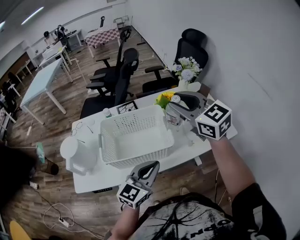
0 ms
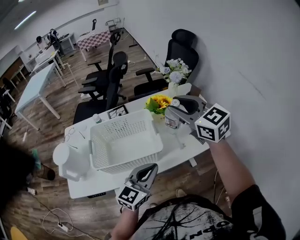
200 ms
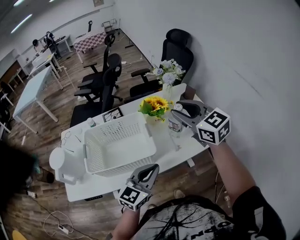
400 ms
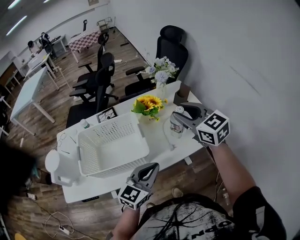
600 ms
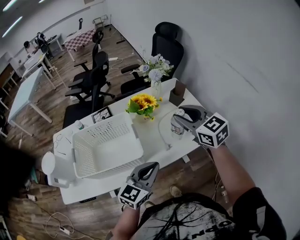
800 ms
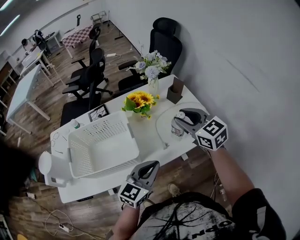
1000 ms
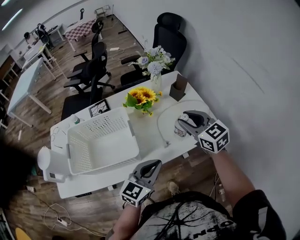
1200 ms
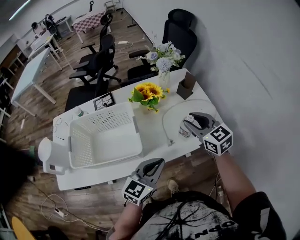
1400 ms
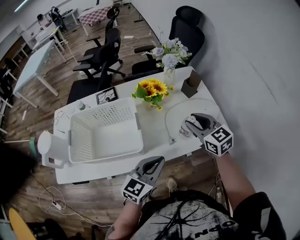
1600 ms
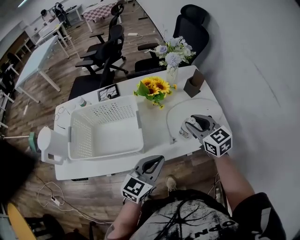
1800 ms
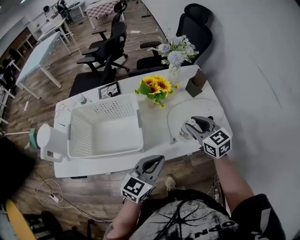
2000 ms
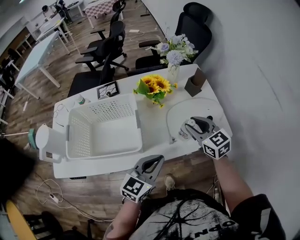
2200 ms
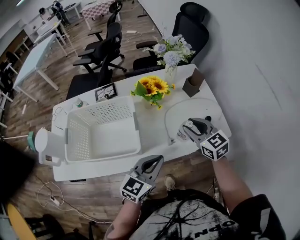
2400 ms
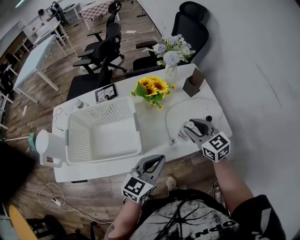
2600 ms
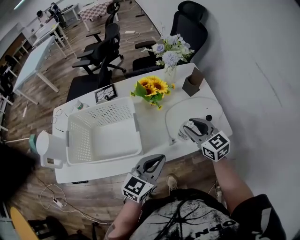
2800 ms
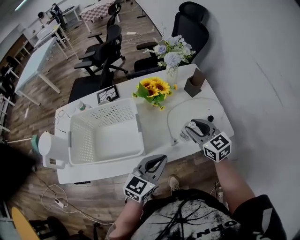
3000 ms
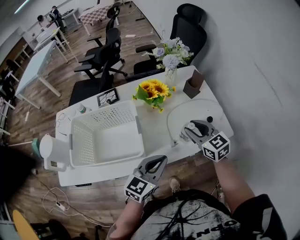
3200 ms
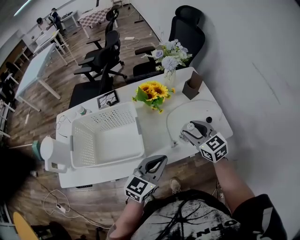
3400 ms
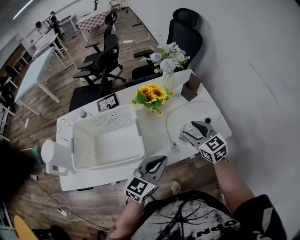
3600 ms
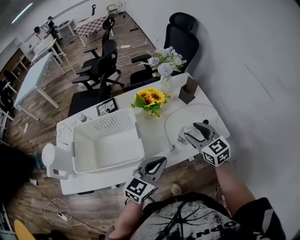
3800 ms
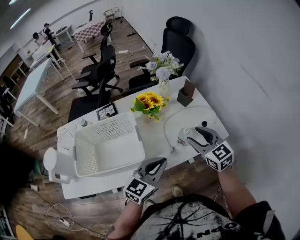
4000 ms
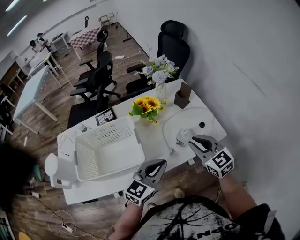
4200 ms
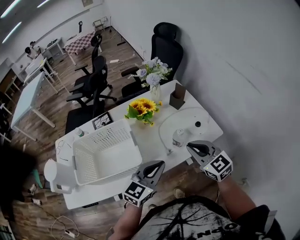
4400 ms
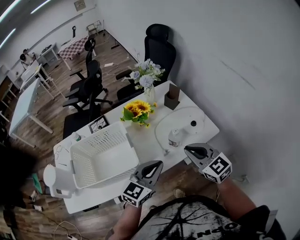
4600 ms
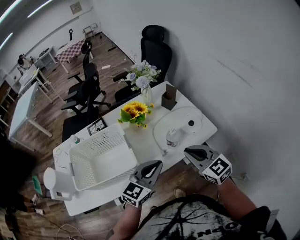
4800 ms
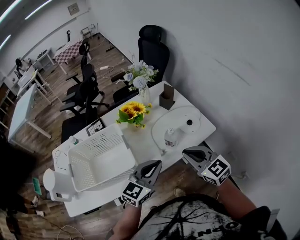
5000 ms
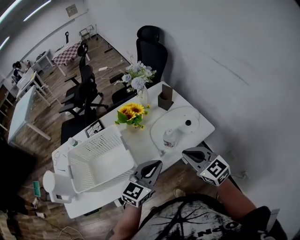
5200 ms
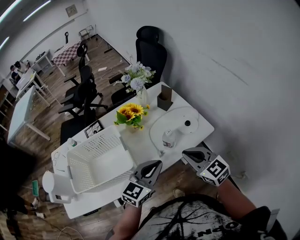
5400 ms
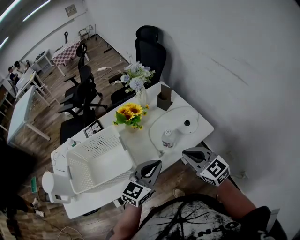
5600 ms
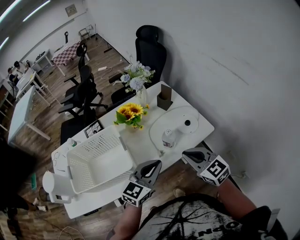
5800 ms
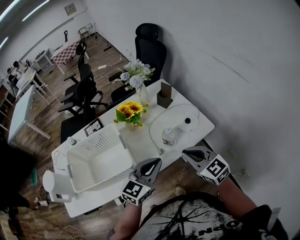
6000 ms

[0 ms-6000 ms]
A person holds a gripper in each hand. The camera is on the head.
0 ms to 1600 ms: The right gripper travels to the right and downward by some 30 cm. Meanwhile the left gripper goes about 15 cm to the right.
1600 ms to 3000 ms: The grippers make only small movements.
3000 ms to 4400 ms: The right gripper heads backward and upward, covering some 10 cm, and closes up.
4400 ms to 6000 ms: There are only small adjustments of the grippers.

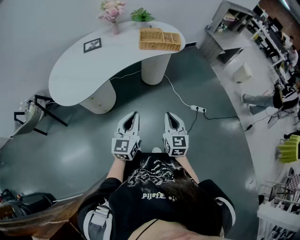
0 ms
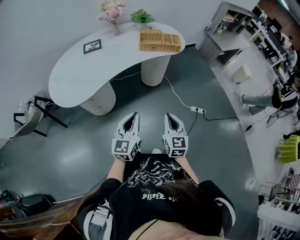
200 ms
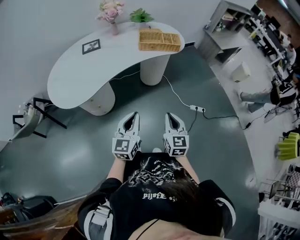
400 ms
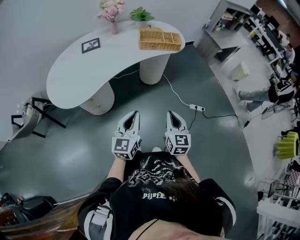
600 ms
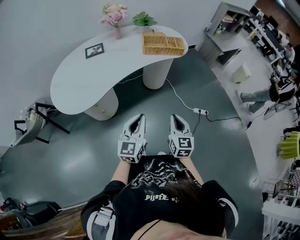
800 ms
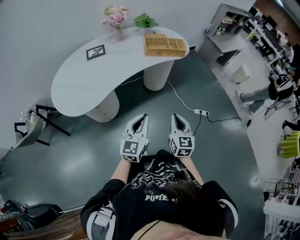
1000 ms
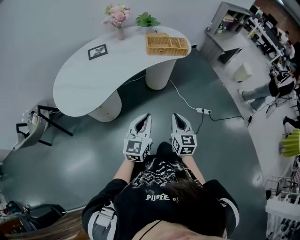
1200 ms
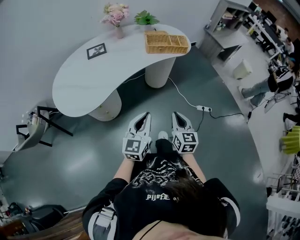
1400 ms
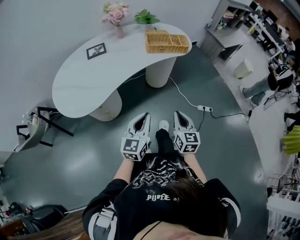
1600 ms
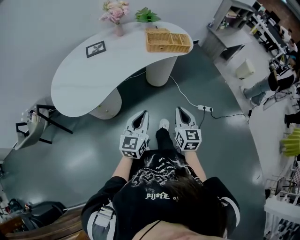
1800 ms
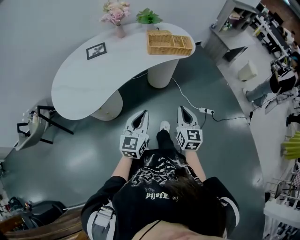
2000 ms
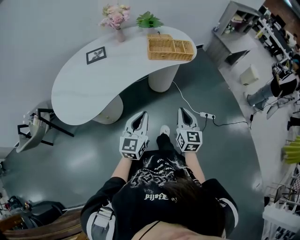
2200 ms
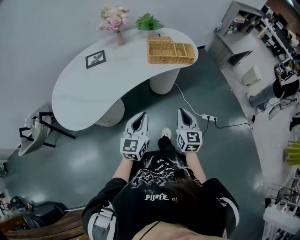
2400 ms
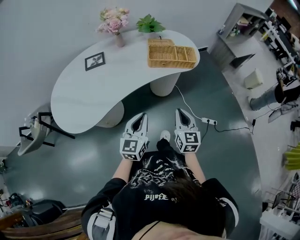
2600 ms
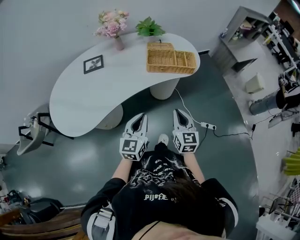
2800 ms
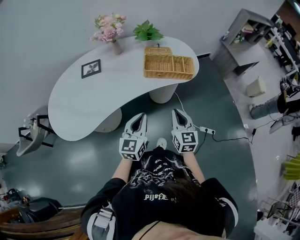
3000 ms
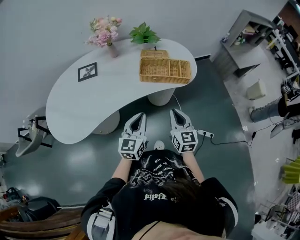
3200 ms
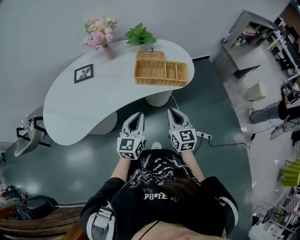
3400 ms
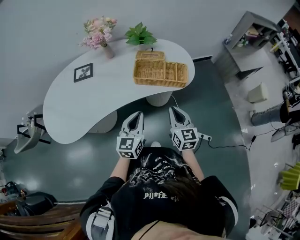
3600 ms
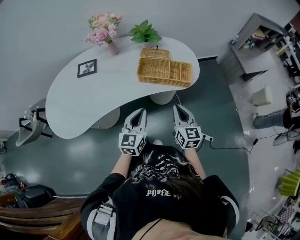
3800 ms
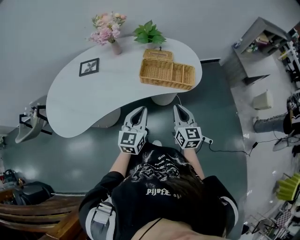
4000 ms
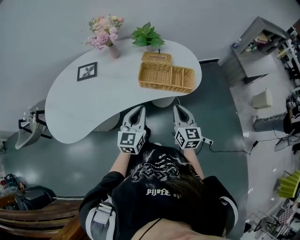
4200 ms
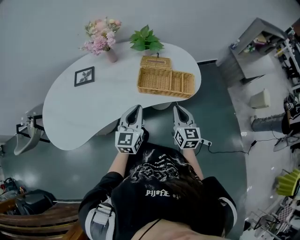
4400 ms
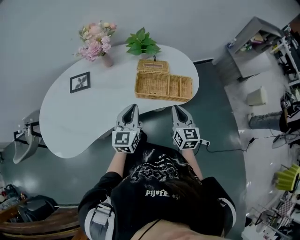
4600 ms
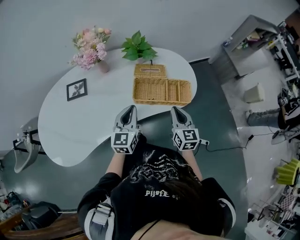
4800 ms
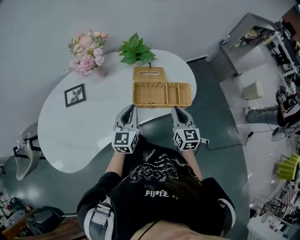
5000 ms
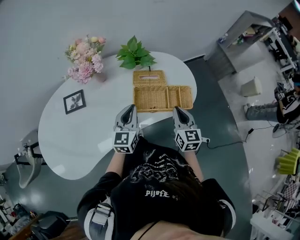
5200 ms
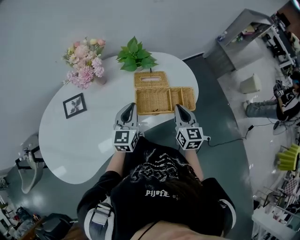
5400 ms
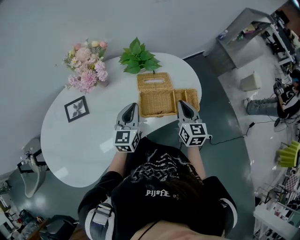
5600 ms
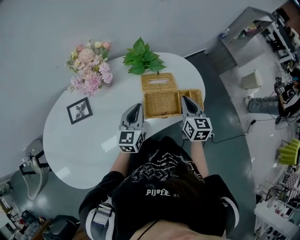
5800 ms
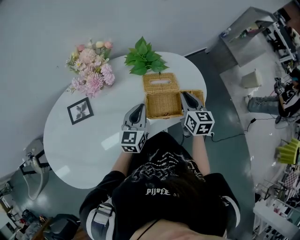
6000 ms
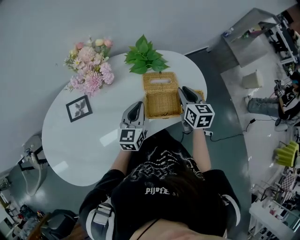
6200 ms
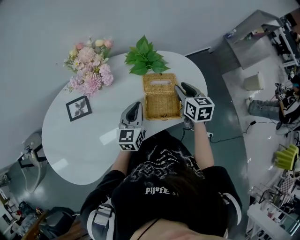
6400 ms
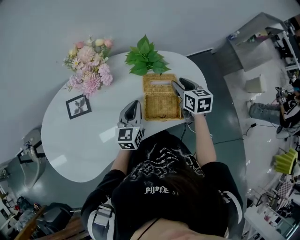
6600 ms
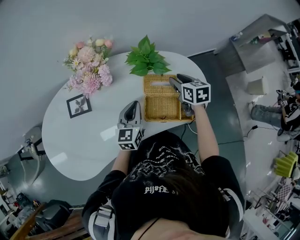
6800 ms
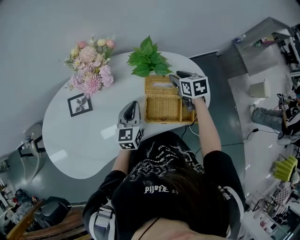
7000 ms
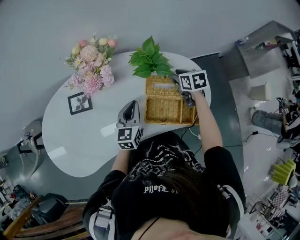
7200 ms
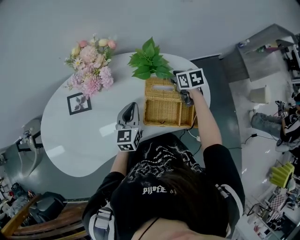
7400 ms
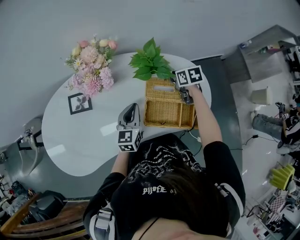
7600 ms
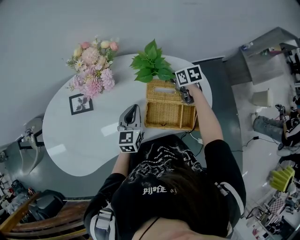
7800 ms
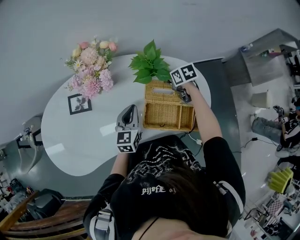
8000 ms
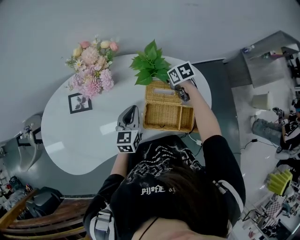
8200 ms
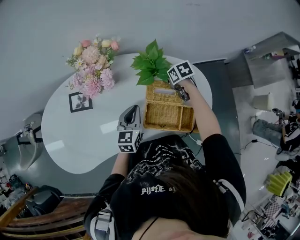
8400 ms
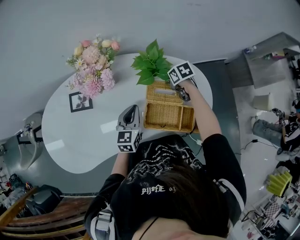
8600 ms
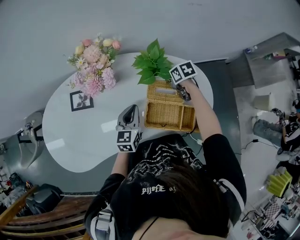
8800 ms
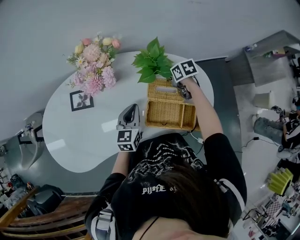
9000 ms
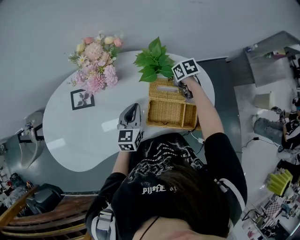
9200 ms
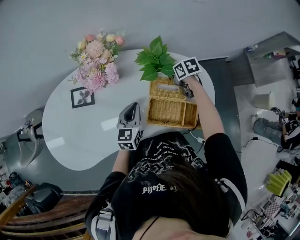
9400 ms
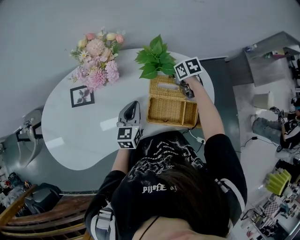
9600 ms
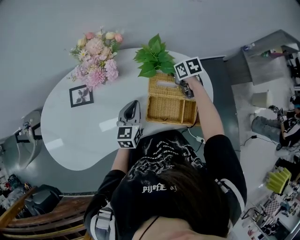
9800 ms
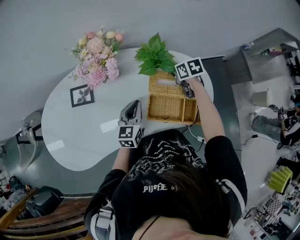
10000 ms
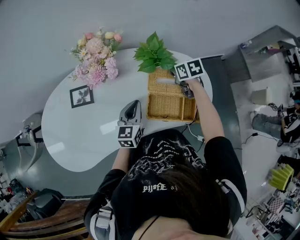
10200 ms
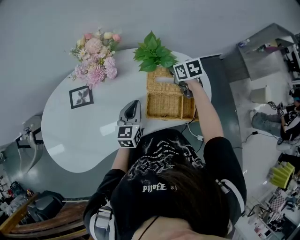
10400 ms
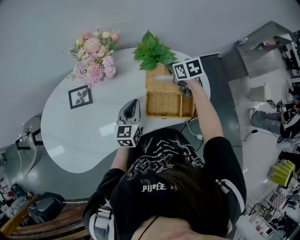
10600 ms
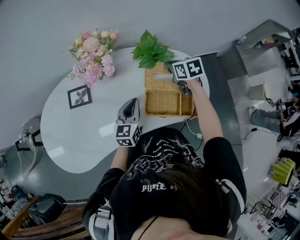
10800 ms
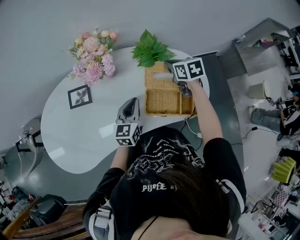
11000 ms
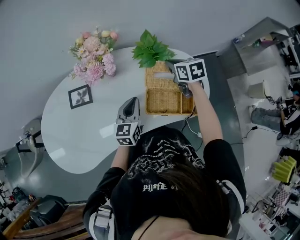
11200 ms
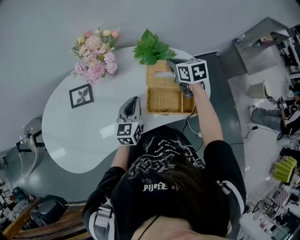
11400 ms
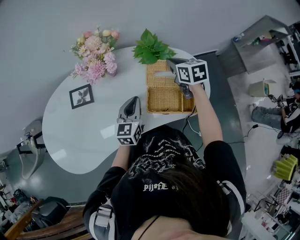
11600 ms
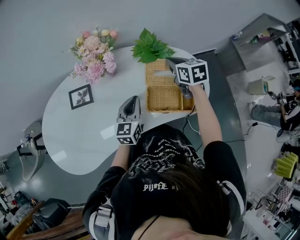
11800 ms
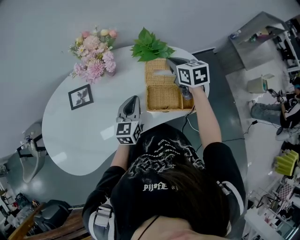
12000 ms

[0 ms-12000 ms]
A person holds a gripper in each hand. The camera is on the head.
0 ms to 1600 ms: Both grippers travel together to the left, approximately 5 cm.
1600 ms to 3000 ms: The two grippers go about 25 cm forward.
3000 ms to 4400 ms: The two grippers go approximately 15 cm forward.
4400 ms to 6000 ms: Both grippers travel together forward, roughly 20 cm.
6000 ms to 7600 ms: The right gripper changes place by approximately 20 cm, turns by roughly 40 degrees, and opens its fingers.
7600 ms to 9000 ms: The right gripper closes its fingers.
9000 ms to 10400 ms: The right gripper is displaced upward by about 5 cm.
10400 ms to 12000 ms: The right gripper moves upward, roughly 10 cm.

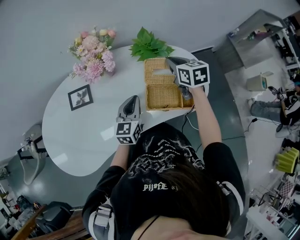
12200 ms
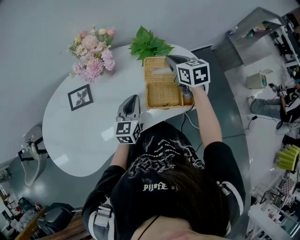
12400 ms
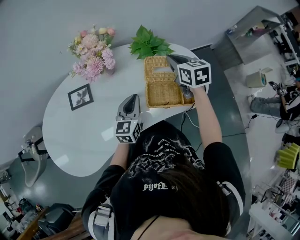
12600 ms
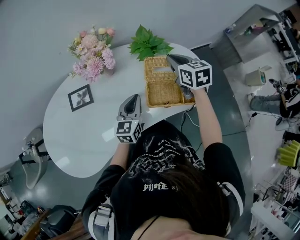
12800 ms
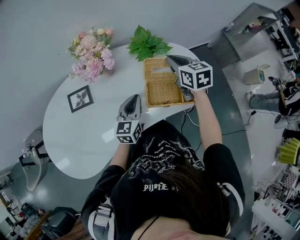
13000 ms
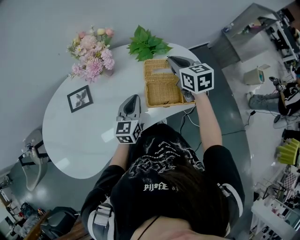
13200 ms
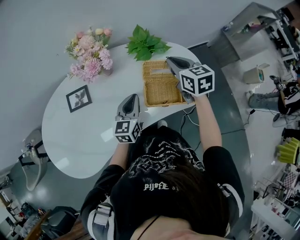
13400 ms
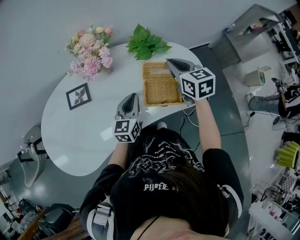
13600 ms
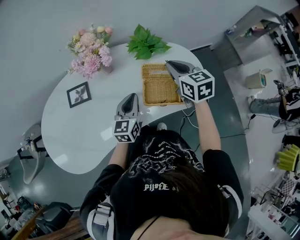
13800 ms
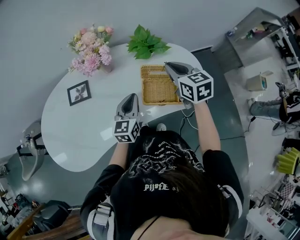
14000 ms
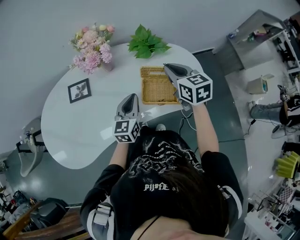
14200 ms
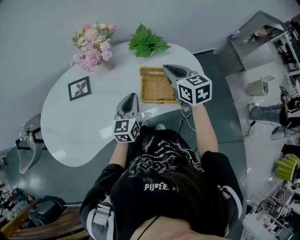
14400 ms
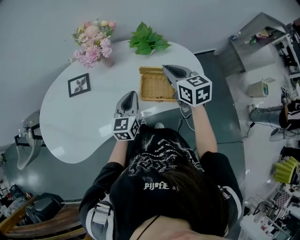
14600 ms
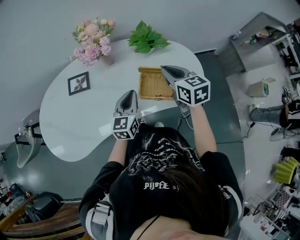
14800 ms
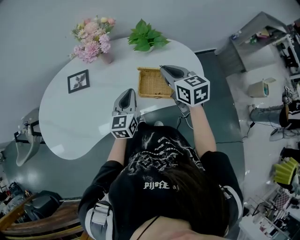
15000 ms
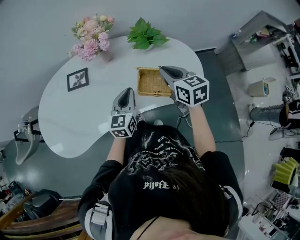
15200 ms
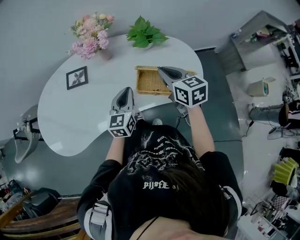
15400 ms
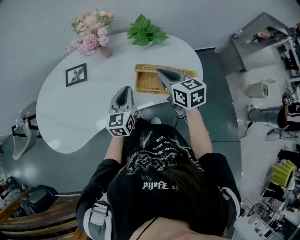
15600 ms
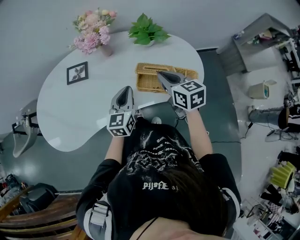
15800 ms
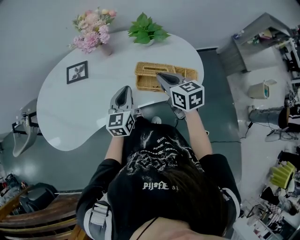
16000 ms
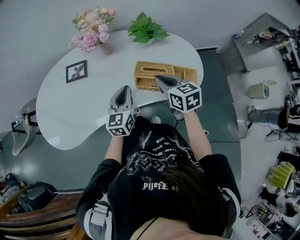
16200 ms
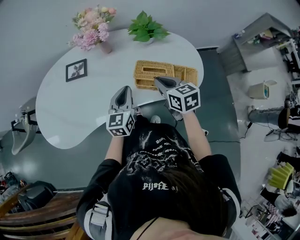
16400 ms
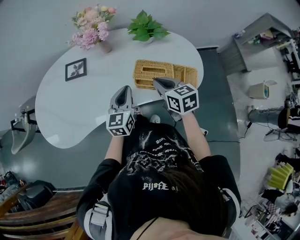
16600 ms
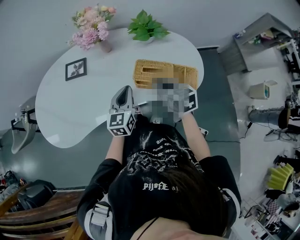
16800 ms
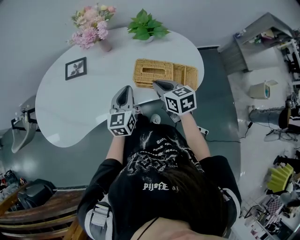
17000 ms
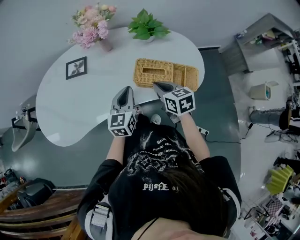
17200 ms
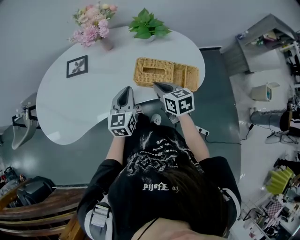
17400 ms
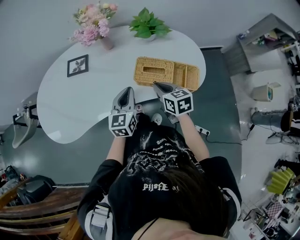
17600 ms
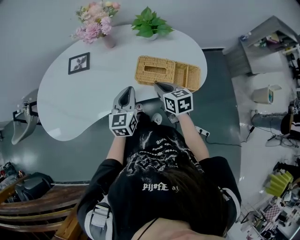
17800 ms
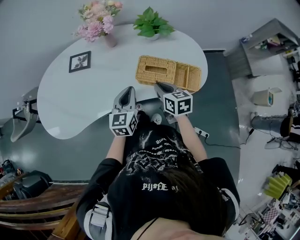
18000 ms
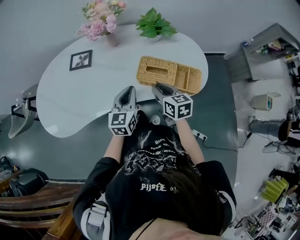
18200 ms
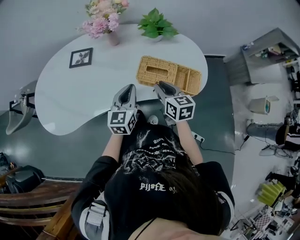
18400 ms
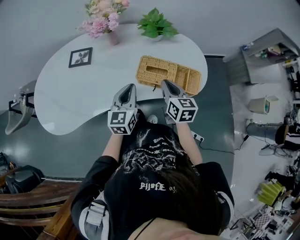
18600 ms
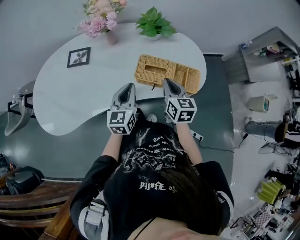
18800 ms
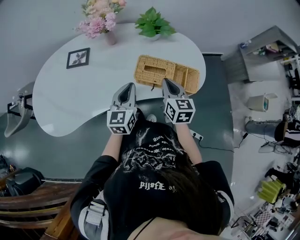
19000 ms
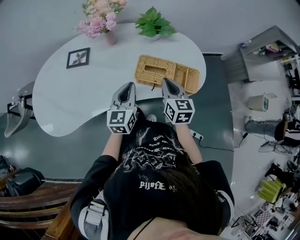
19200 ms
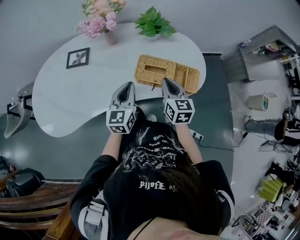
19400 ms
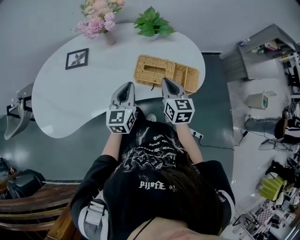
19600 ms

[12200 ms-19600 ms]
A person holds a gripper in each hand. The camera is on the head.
12200 ms to 13600 ms: The right gripper shifts some 5 cm backward.
13600 ms to 15200 ms: The right gripper is displaced backward by some 10 cm. The left gripper moves backward, approximately 5 cm.
15200 ms to 16600 ms: The right gripper shifts approximately 10 cm downward and backward.
16600 ms to 18200 ms: The right gripper moves approximately 5 cm.
18200 ms to 19600 ms: The right gripper ends up some 5 cm from where it was, and turns by roughly 20 degrees.
